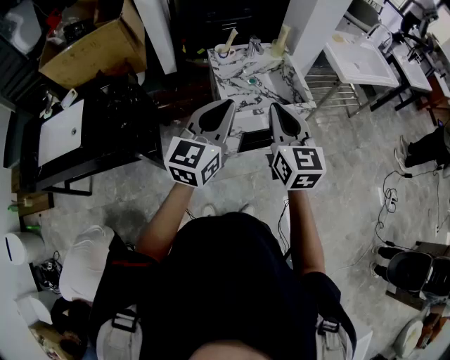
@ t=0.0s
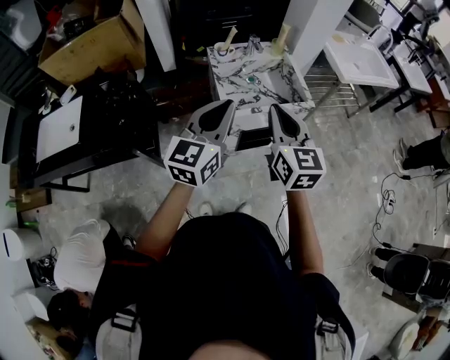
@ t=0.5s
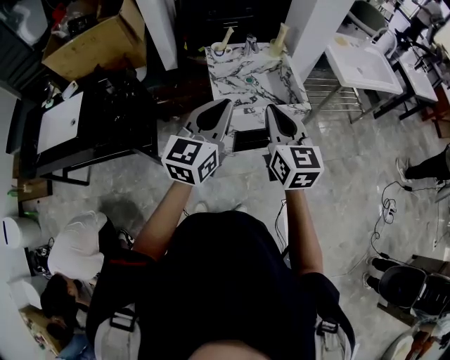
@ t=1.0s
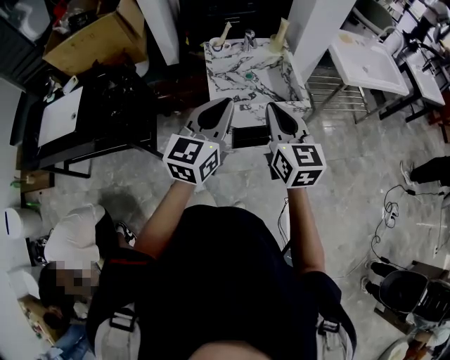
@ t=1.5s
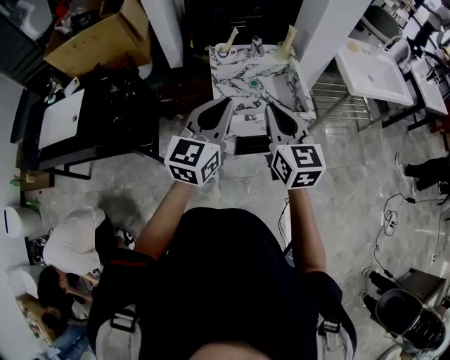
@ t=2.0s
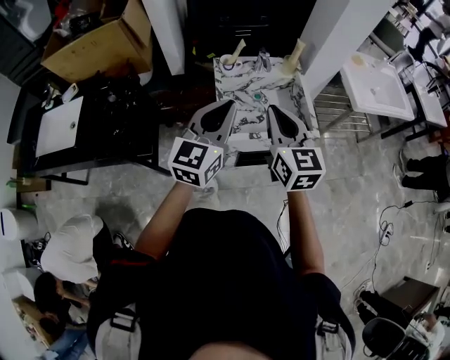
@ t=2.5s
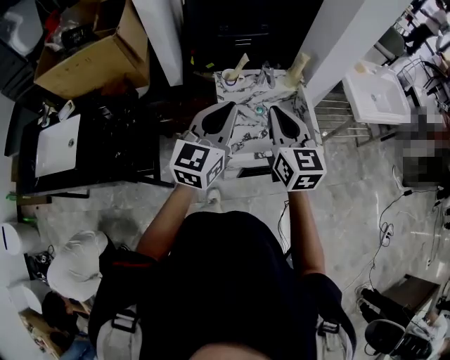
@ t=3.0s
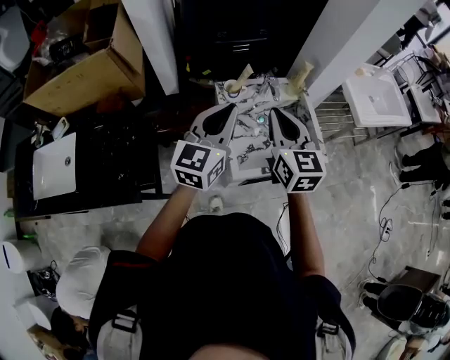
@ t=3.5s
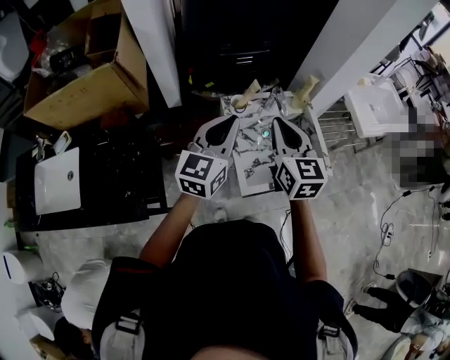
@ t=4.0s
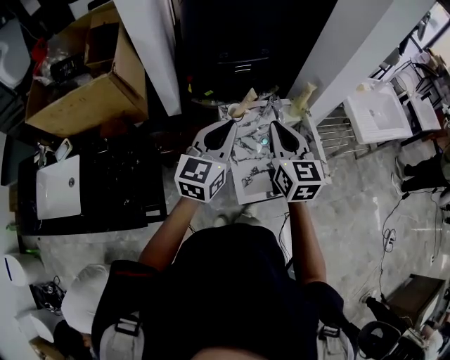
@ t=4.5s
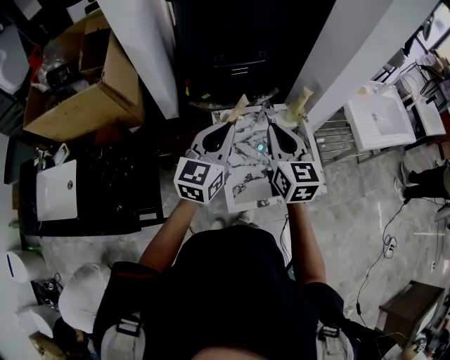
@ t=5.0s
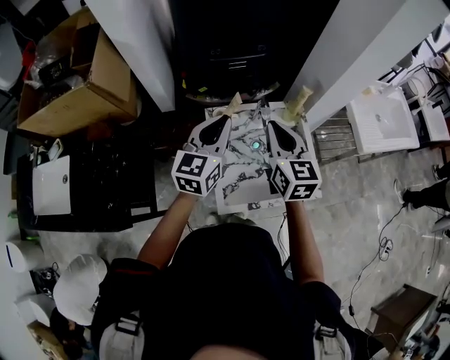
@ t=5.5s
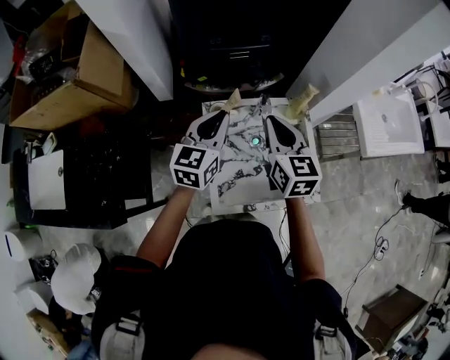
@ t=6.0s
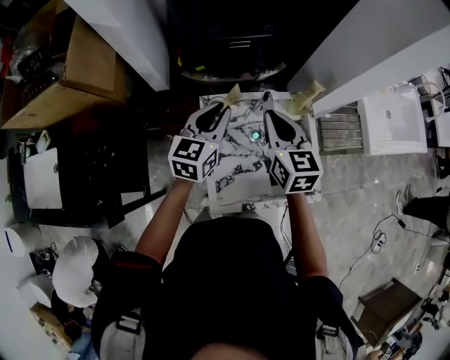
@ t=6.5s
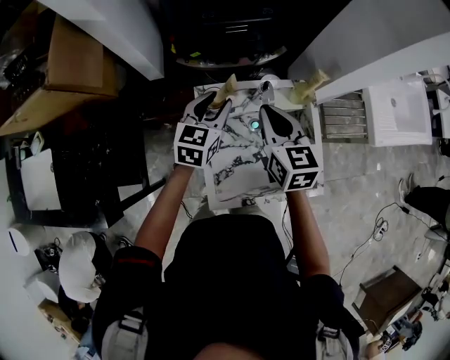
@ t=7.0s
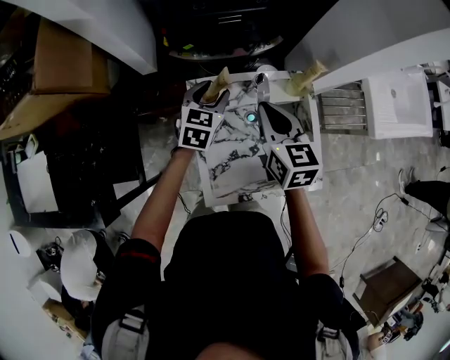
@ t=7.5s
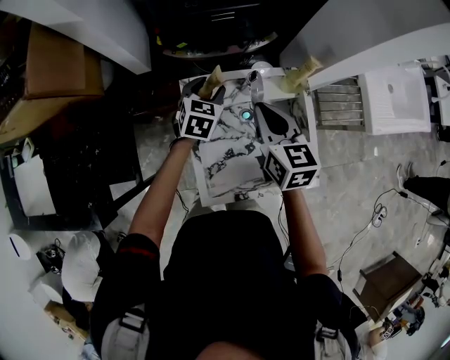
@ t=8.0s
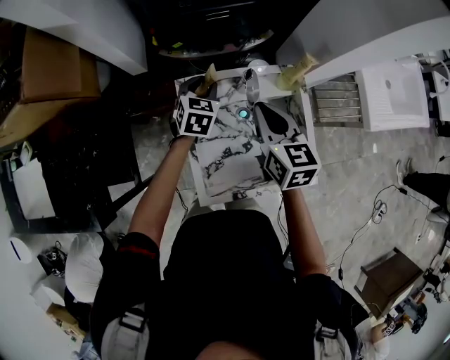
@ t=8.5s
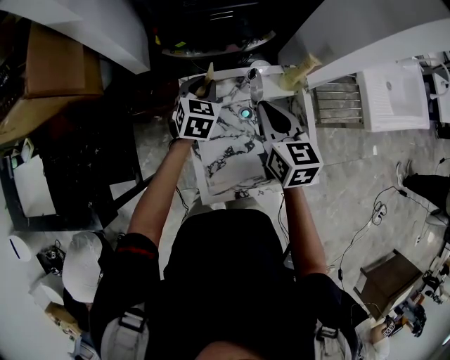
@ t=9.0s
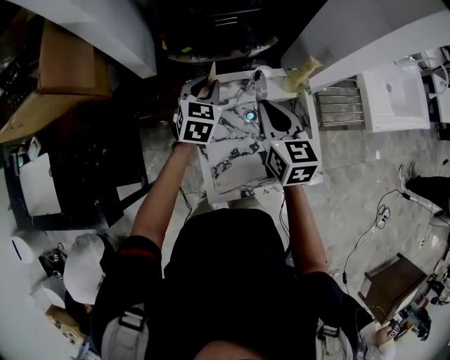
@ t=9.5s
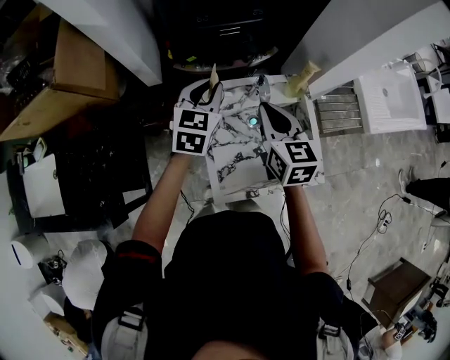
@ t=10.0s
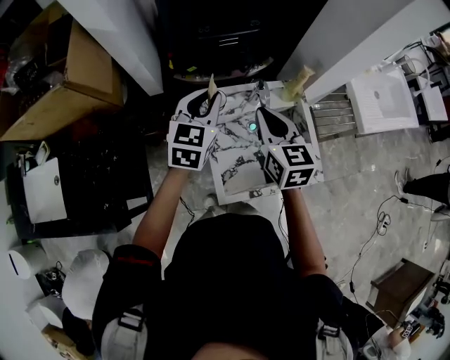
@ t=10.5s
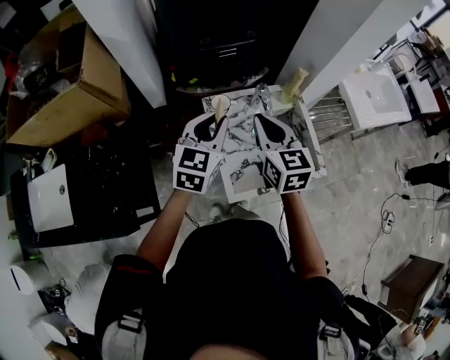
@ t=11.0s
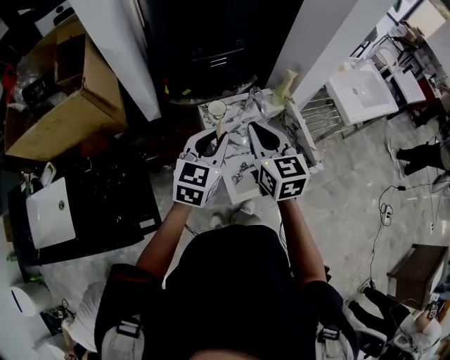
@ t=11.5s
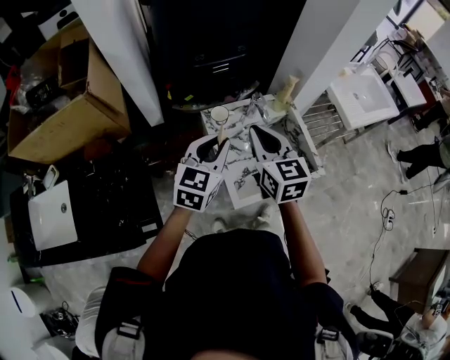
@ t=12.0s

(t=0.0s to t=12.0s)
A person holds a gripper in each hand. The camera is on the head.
t=0.0s - t=2.0s: The right gripper shifts about 5 cm forward. Meanwhile the left gripper goes roughly 10 cm to the right and forward.
t=2.0s - t=4.0s: Both grippers travel together forward and to the left, roughly 25 cm.
t=4.0s - t=6.0s: The left gripper moves forward, downward and to the right, roughly 15 cm. Meanwhile the right gripper heads forward, to the right and downward, covering some 15 cm.
t=6.0s - t=8.0s: The left gripper shifts about 20 cm downward and forward, turns by approximately 30 degrees, and opens its fingers. Meanwhile the right gripper moves downward, approximately 10 cm.
t=8.0s - t=10.0s: The right gripper changes place by some 5 cm, while the left gripper heads upward, covering some 15 cm, and closes.
t=10.0s - t=12.0s: The right gripper heads backward, upward and to the left, covering about 15 cm. The left gripper moves backward, about 20 cm.

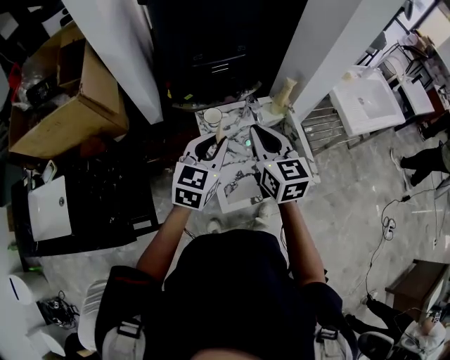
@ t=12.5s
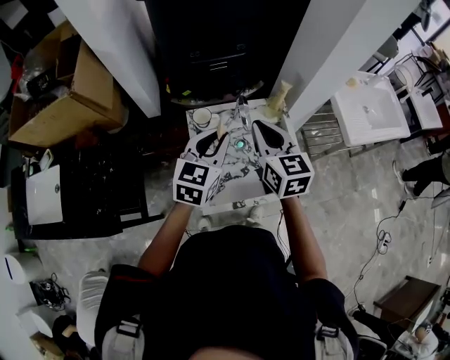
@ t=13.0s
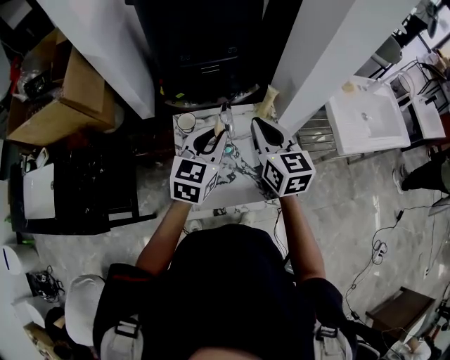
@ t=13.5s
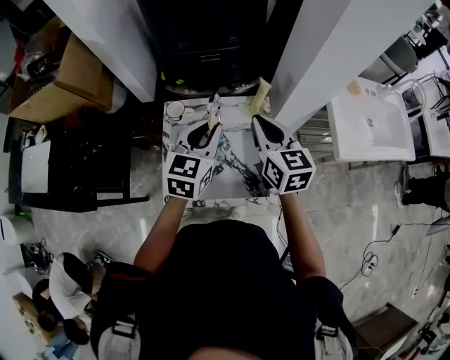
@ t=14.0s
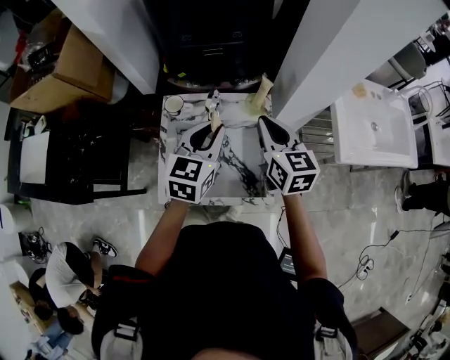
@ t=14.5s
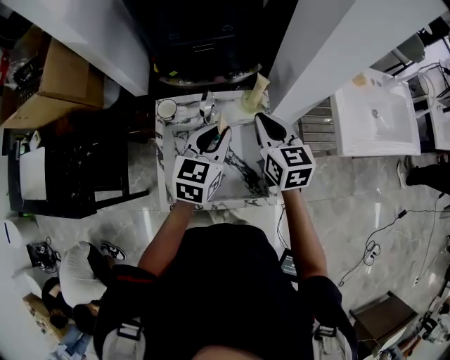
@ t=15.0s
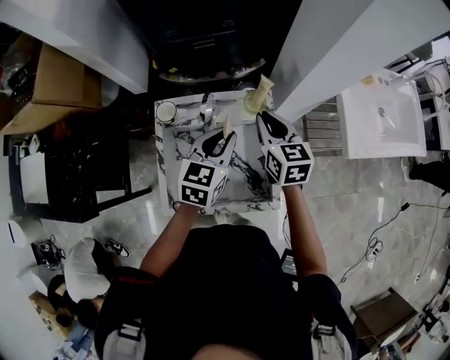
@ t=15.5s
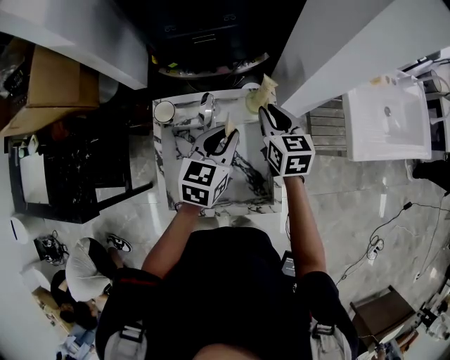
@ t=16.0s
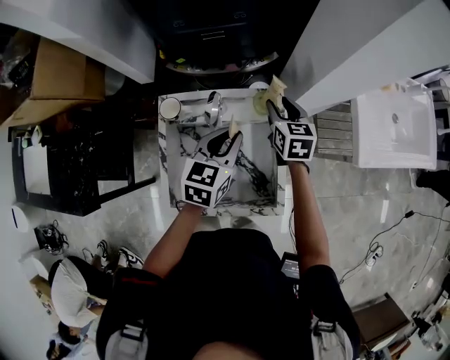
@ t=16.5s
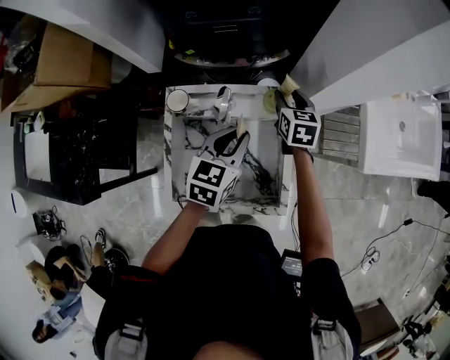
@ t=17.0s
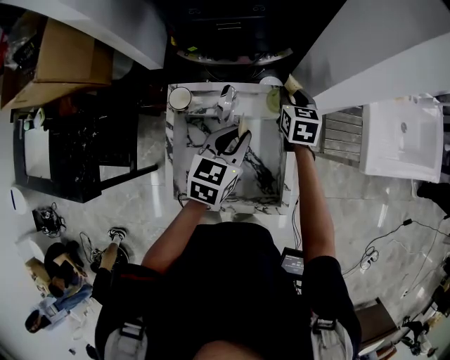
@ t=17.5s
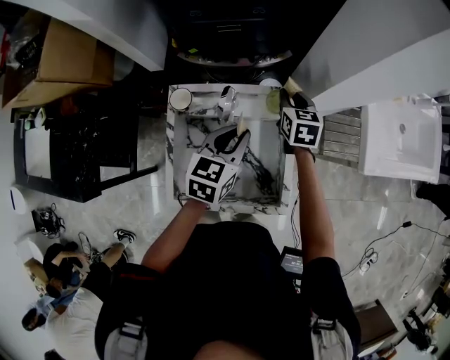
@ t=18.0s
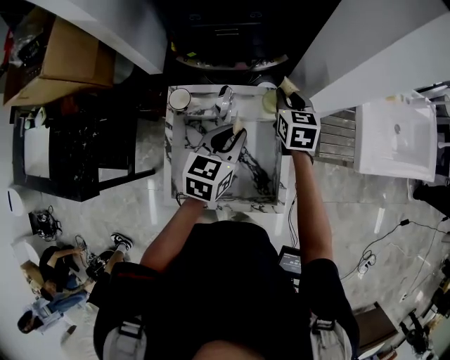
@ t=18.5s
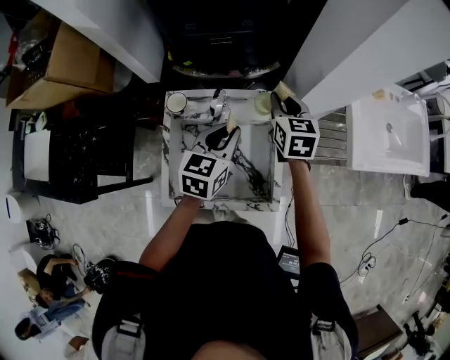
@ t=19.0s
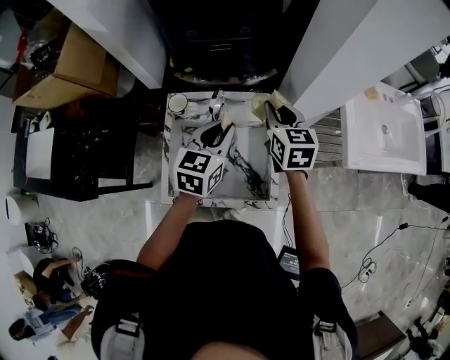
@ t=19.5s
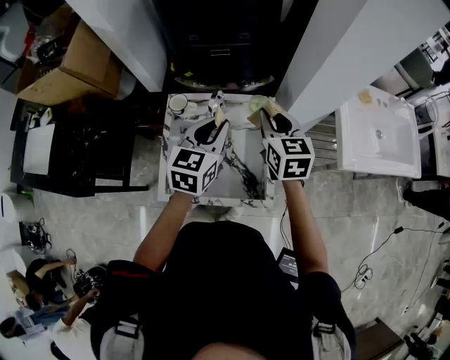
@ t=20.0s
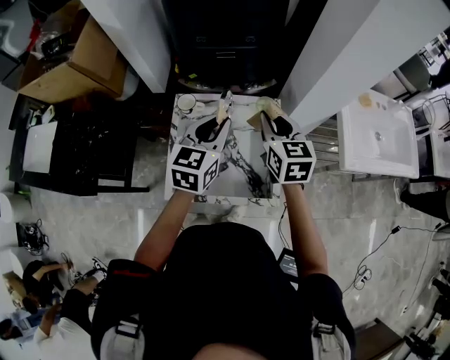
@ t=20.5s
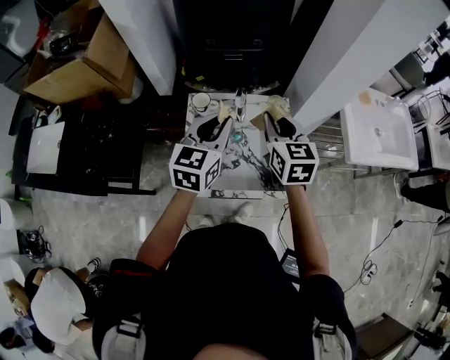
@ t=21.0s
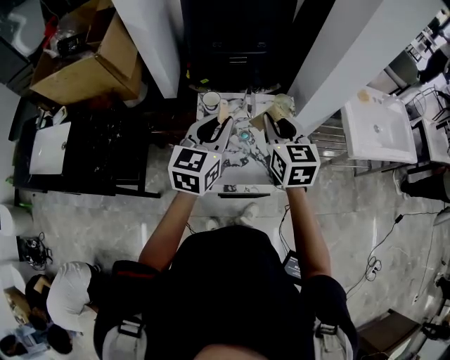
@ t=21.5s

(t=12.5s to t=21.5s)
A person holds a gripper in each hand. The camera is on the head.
t=12.5s - t=14.5s: The left gripper shifts some 20 cm to the right. The right gripper is displaced to the right and forward by approximately 25 cm.
t=14.5s - t=17.0s: The right gripper moves downward and forward, some 25 cm, swivels some 20 degrees, and opens; the left gripper is displaced downward and forward by about 10 cm.
t=17.0s - t=19.5s: The left gripper heads upward, covering approximately 5 cm. Meanwhile the right gripper heads upward and backward, covering some 15 cm, and closes up.
t=19.5s - t=21.5s: The left gripper goes approximately 20 cm to the left, upward and backward. Meanwhile the right gripper travels backward, to the left and upward by some 20 cm.

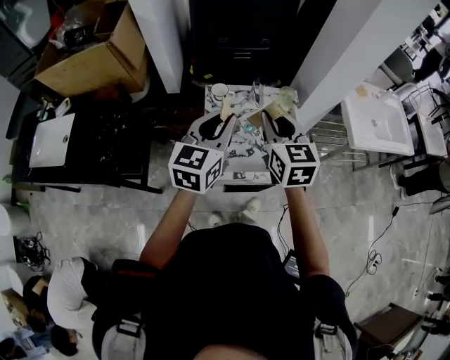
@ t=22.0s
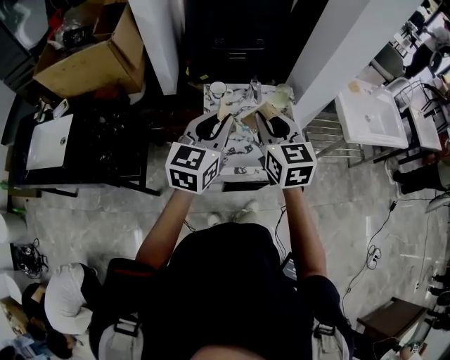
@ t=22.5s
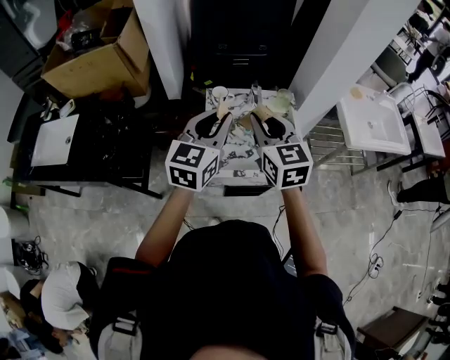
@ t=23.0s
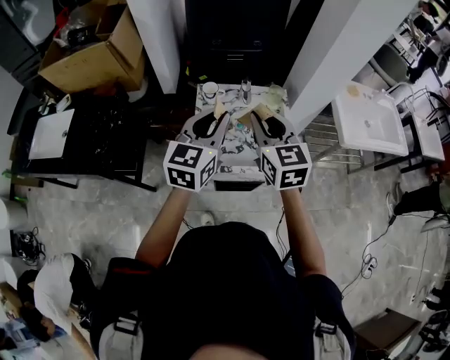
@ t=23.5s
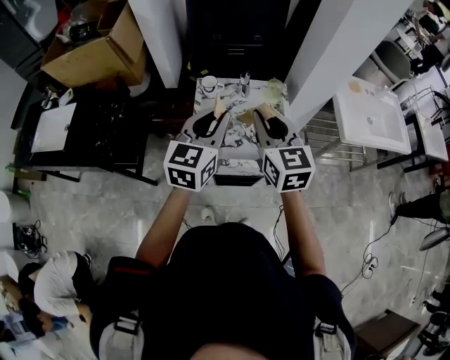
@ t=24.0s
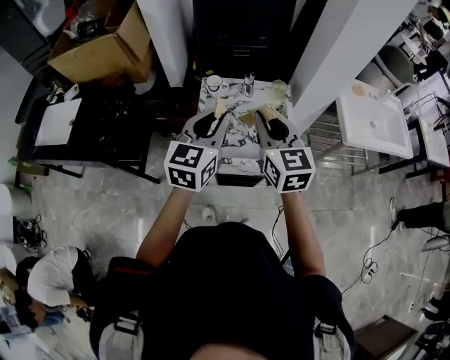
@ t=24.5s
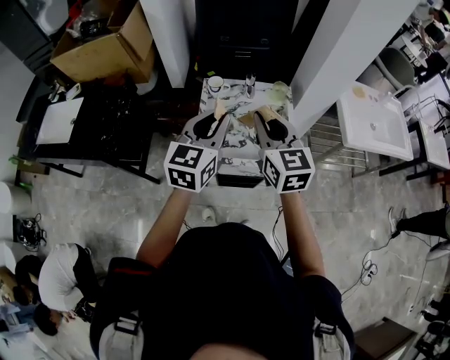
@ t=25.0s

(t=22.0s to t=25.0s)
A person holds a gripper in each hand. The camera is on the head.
t=22.0s - t=23.5s: The left gripper shifts by about 5 cm. Meanwhile the right gripper moves approximately 5 cm.
t=23.5s - t=25.0s: The grippers move only a little.

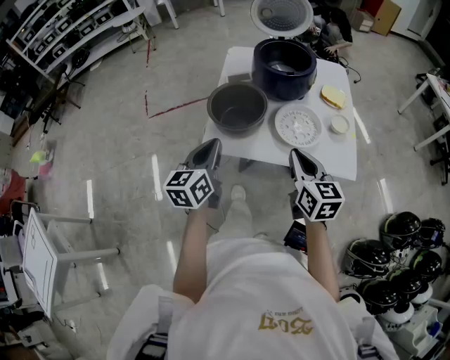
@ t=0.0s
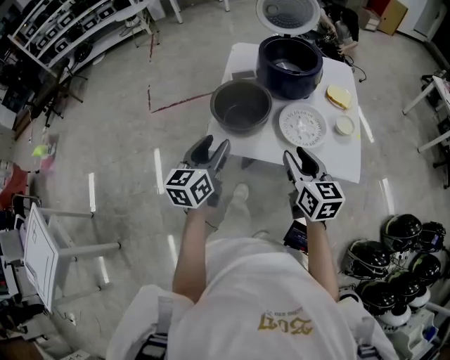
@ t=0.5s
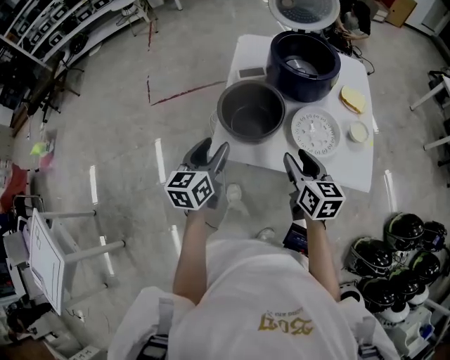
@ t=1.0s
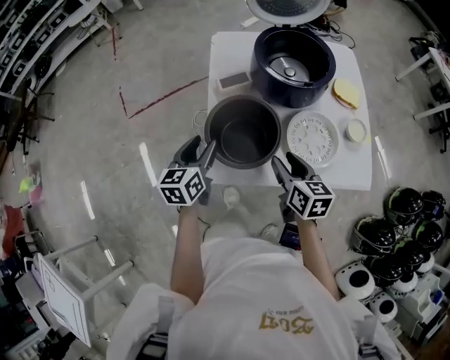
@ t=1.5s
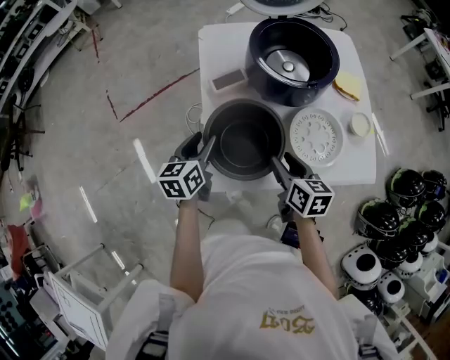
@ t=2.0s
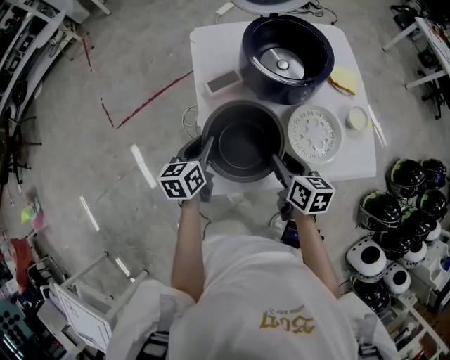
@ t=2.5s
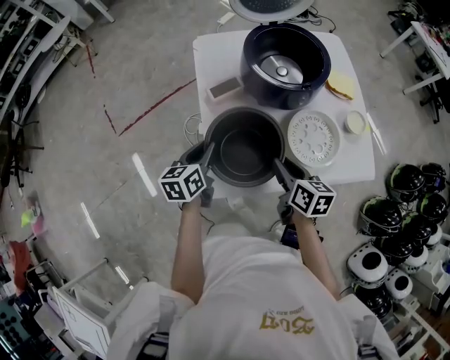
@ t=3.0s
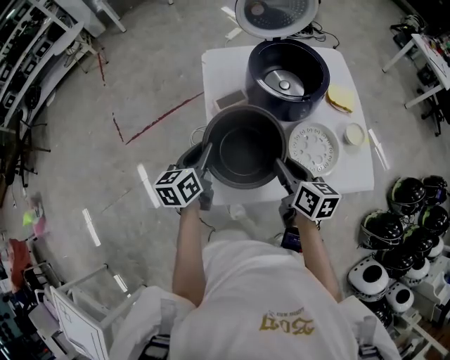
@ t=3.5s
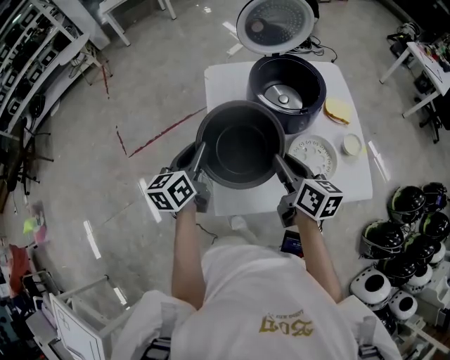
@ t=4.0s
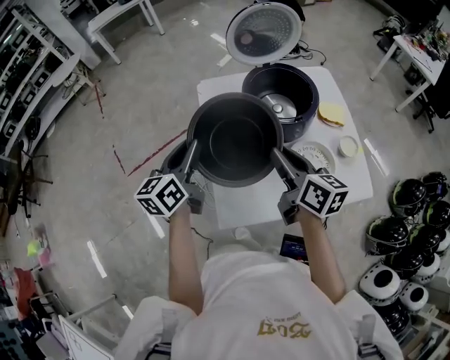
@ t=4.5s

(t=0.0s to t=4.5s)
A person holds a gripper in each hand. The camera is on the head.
t=0.0s - t=2.0s: The right gripper moves forward, downward and to the left, some 25 cm, rotates about 30 degrees, and opens its fingers. Meanwhile the left gripper heads forward and downward, covering approximately 30 cm, changes its angle by roughly 20 degrees, and opens up.
t=2.0s - t=4.5s: Both grippers move upward, about 15 cm. The right gripper changes its angle by roughly 20 degrees, and closes its fingers, while the left gripper rotates about 20 degrees, and closes up.
